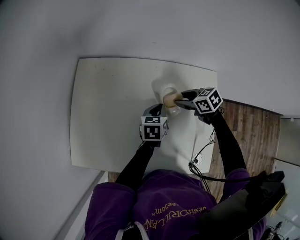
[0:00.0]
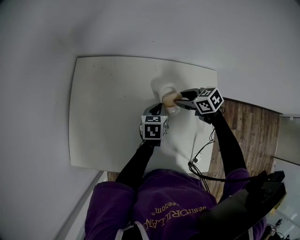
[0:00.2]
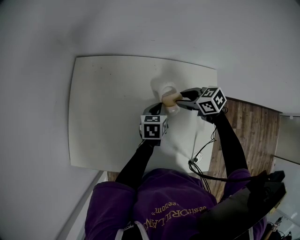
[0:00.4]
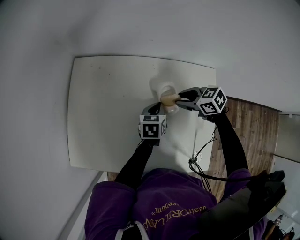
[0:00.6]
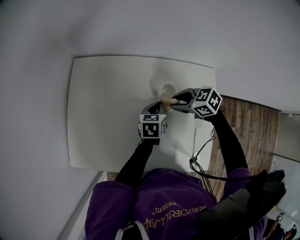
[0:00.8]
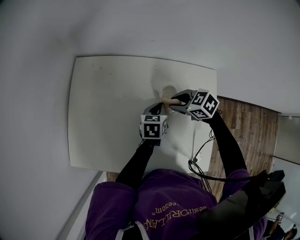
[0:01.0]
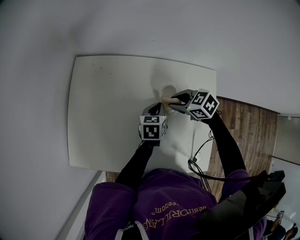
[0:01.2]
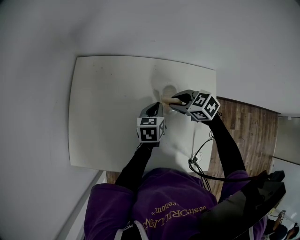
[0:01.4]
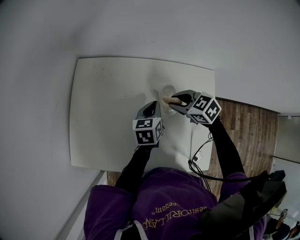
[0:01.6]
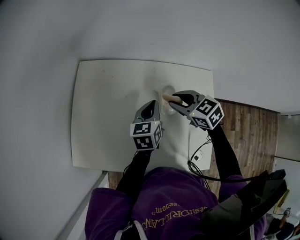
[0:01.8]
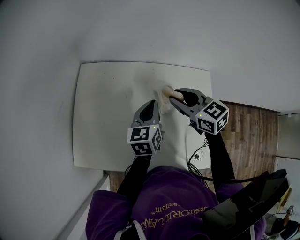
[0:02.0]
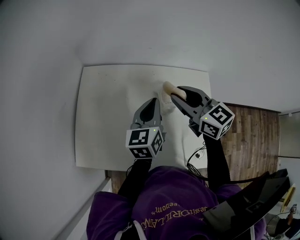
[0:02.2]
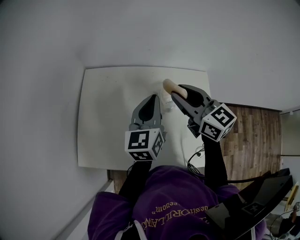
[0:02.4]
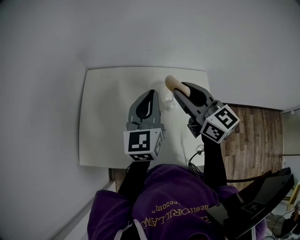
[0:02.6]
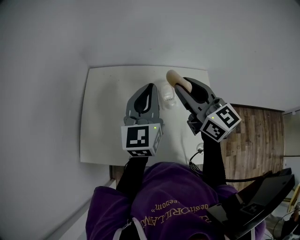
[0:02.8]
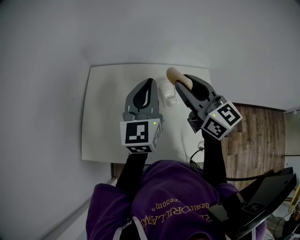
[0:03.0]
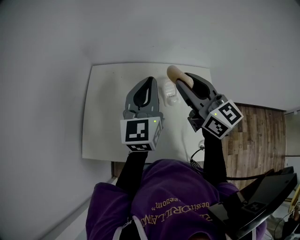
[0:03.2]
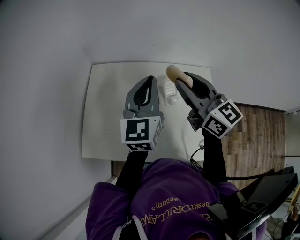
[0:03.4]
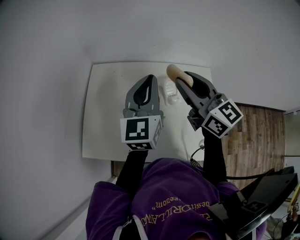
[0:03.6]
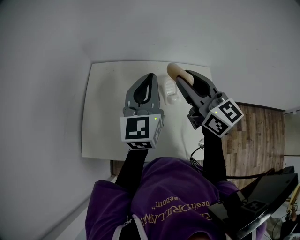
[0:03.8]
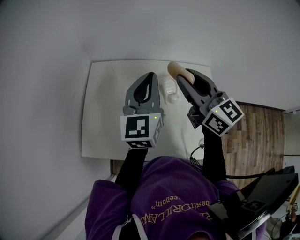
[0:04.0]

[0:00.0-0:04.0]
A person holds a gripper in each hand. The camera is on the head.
0.0 to 1.4 s: The right gripper changes place by approximately 5 cm.
1.4 to 2.6 s: The two grippers go roughly 25 cm upward. The left gripper angles its fingers upward, by approximately 30 degrees. The right gripper angles its fingers upward, by about 40 degrees.
2.6 to 4.0 s: There are only small adjustments of the grippers.

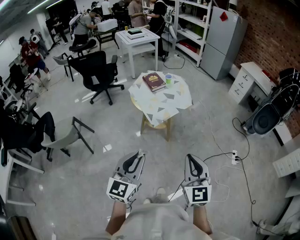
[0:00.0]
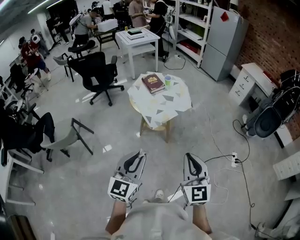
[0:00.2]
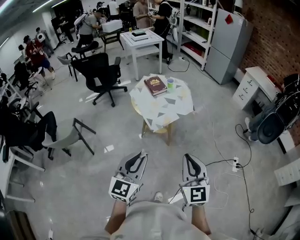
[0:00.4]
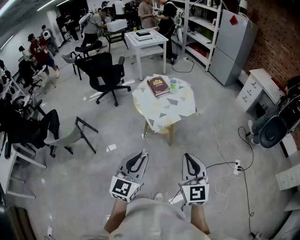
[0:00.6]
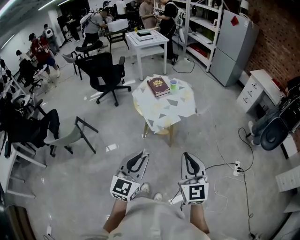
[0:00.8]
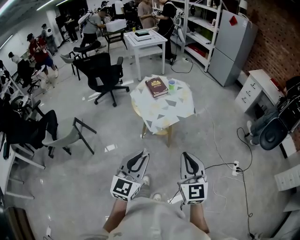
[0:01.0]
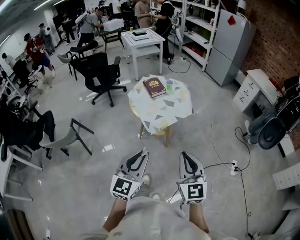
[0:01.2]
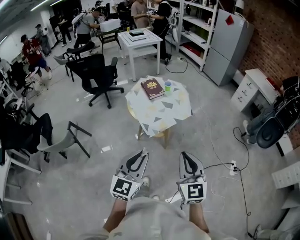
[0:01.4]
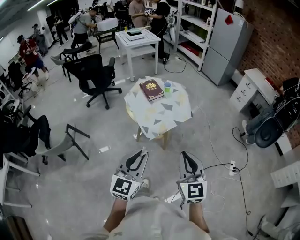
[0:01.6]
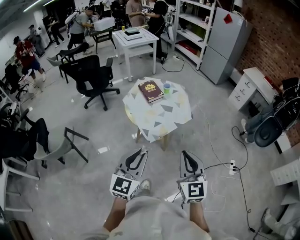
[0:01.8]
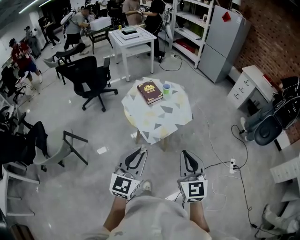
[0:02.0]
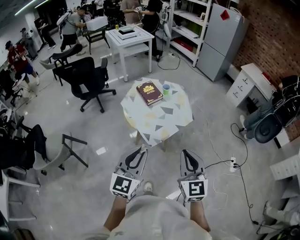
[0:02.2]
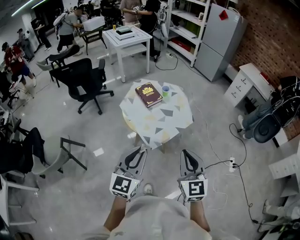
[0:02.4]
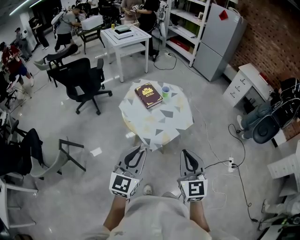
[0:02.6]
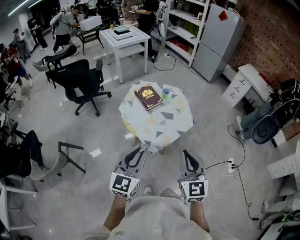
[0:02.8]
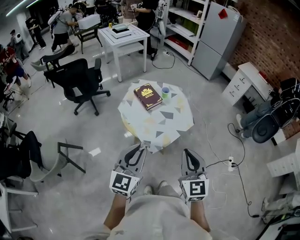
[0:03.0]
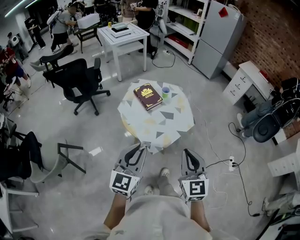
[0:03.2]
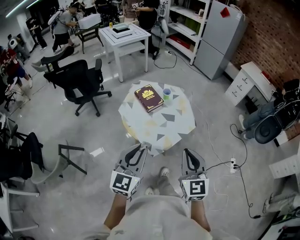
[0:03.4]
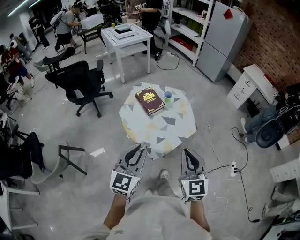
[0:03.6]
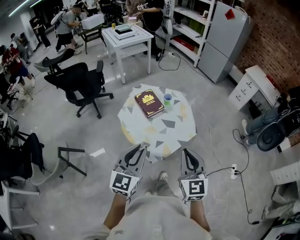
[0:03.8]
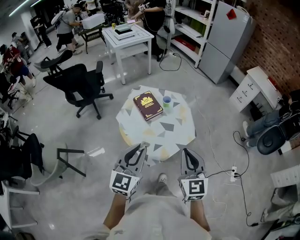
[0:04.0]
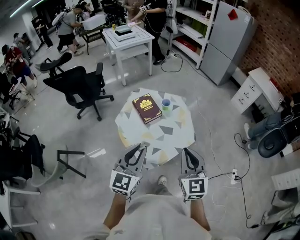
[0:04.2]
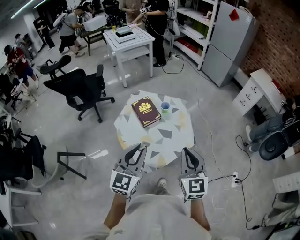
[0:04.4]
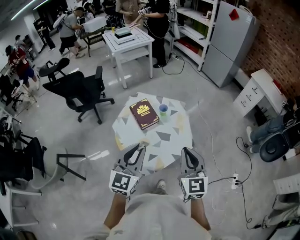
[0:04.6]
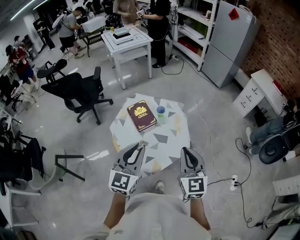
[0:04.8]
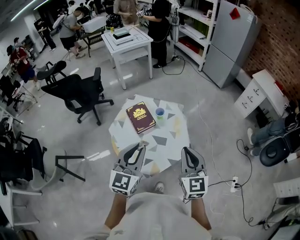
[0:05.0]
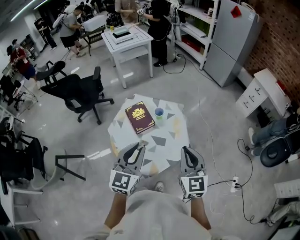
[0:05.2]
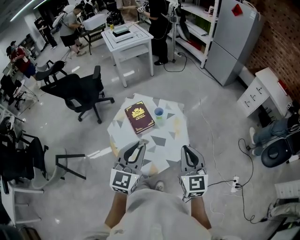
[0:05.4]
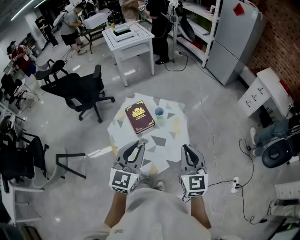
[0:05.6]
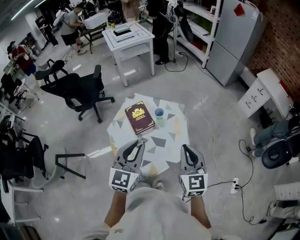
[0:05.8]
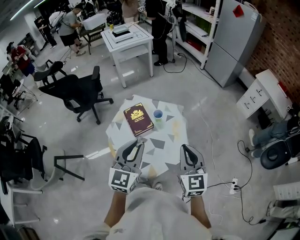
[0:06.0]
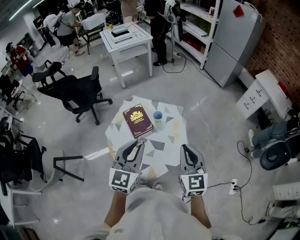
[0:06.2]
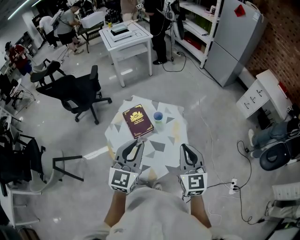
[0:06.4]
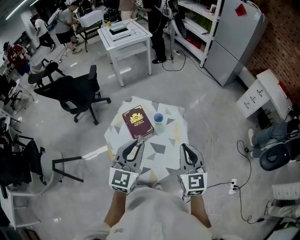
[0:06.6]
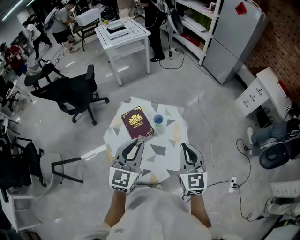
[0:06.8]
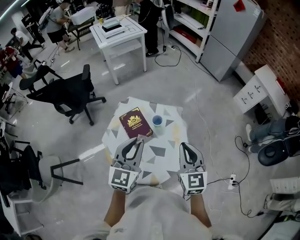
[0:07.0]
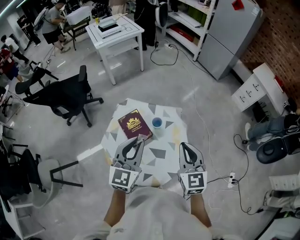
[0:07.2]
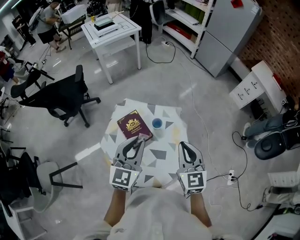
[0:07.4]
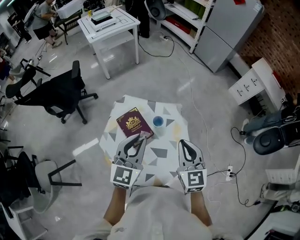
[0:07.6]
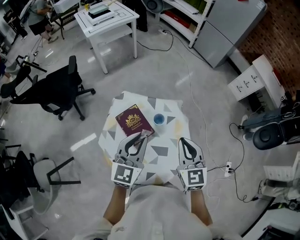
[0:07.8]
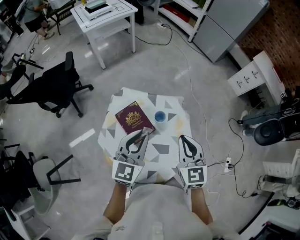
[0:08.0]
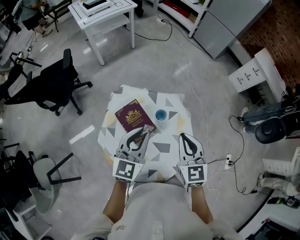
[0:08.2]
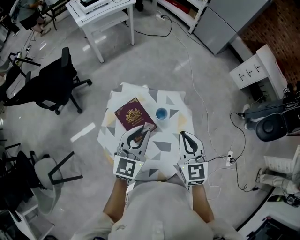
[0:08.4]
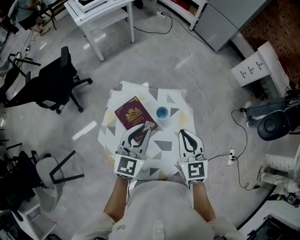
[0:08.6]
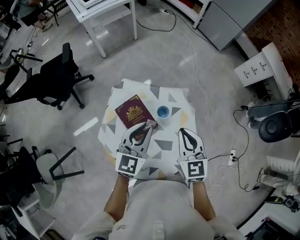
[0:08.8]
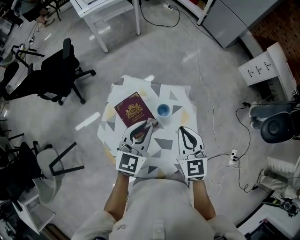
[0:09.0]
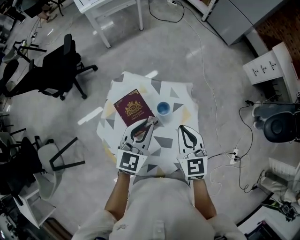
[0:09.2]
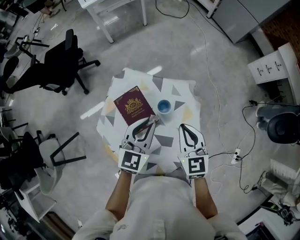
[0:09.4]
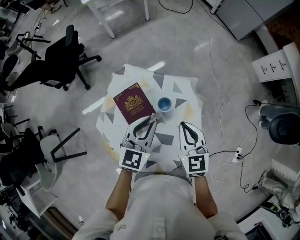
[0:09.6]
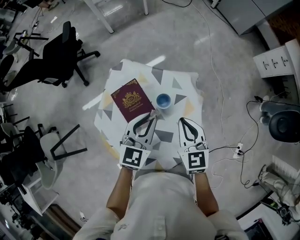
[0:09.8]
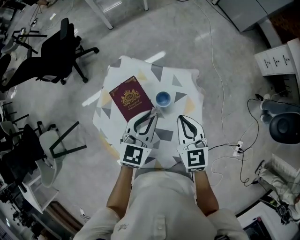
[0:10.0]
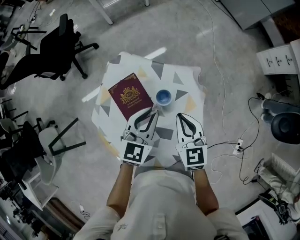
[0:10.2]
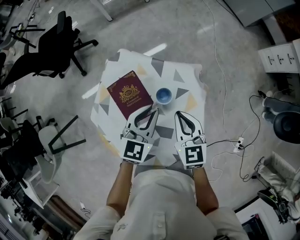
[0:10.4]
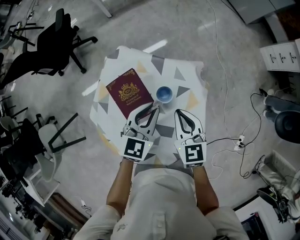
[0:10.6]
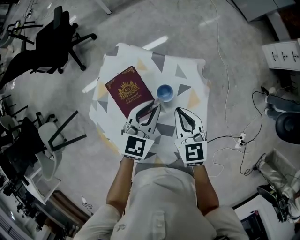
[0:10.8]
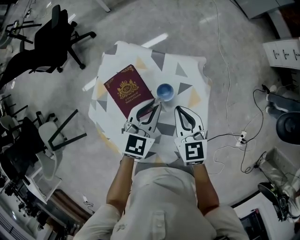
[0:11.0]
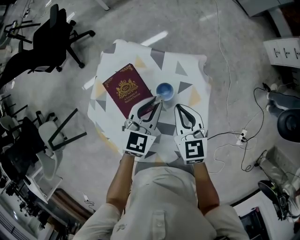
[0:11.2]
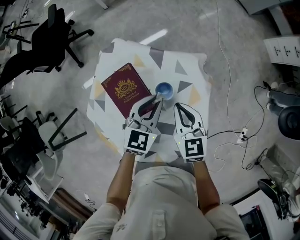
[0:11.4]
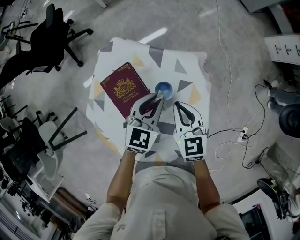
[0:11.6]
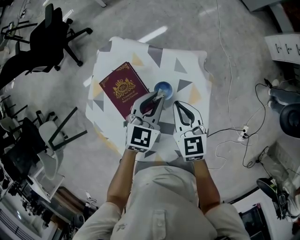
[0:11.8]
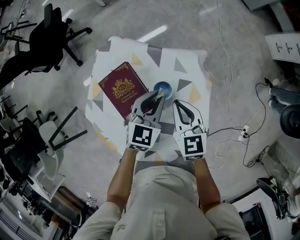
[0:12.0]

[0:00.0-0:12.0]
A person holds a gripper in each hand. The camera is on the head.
0.0 to 1.6 s: The grippers both shift forward by some 15 cm.
1.6 to 3.0 s: Both grippers travel together forward and to the left, some 15 cm.
3.0 to 4.4 s: Both grippers travel together forward, some 15 cm.
4.4 to 6.0 s: The two grippers go about 15 cm forward and to the right.
6.0 to 7.6 s: The left gripper moves forward, about 15 cm, while the right gripper shifts some 15 cm forward and to the left.
7.6 to 9.0 s: The two grippers go roughly 10 cm downward and forward.
9.0 to 10.4 s: The grippers both shift downward by about 10 cm.
10.4 to 12.0 s: Both grippers travel together downward, some 5 cm.

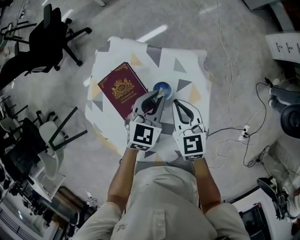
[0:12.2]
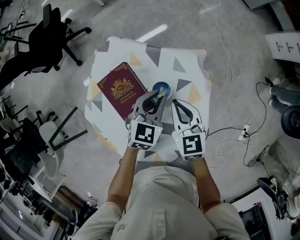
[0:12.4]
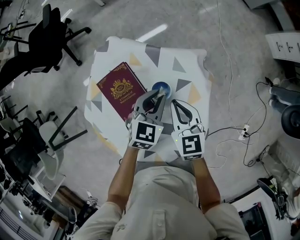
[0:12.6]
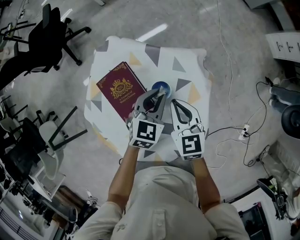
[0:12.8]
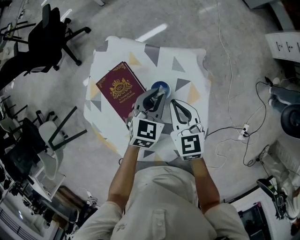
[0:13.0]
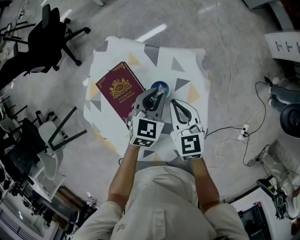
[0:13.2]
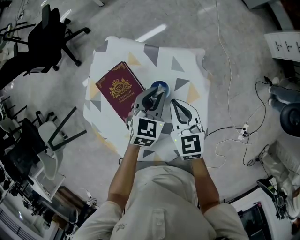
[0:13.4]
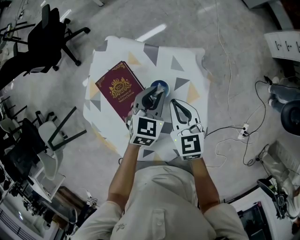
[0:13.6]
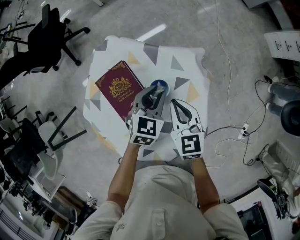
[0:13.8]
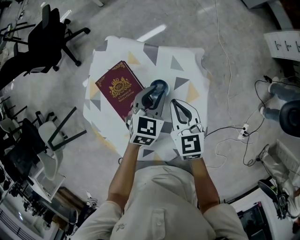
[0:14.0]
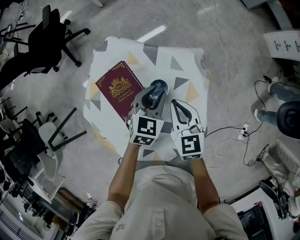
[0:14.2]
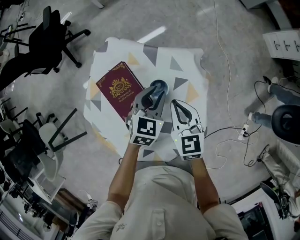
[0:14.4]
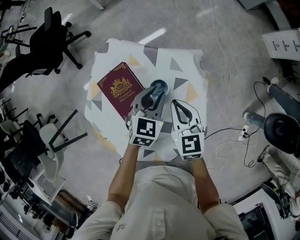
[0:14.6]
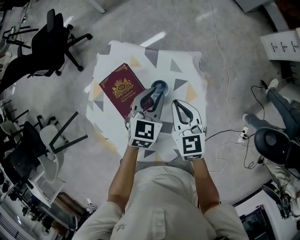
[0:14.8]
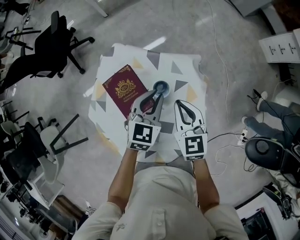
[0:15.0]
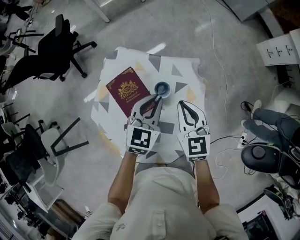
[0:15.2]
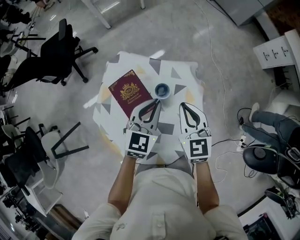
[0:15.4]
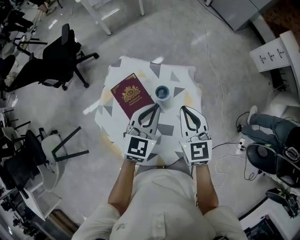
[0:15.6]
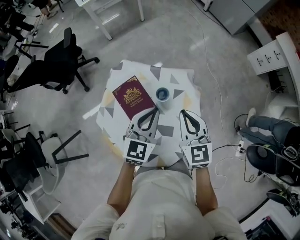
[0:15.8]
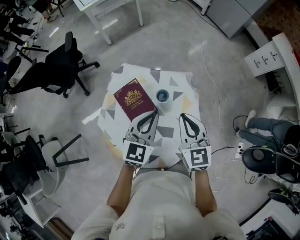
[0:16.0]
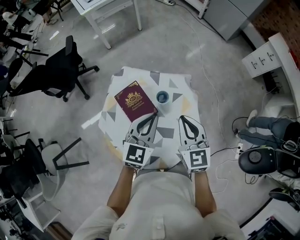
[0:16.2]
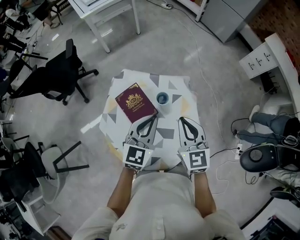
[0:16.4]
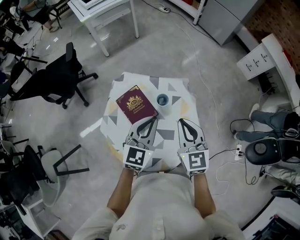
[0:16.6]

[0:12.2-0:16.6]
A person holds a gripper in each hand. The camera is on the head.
12.2 to 13.6 s: The grippers move only a little.
13.6 to 15.2 s: Both grippers travel together upward, some 10 cm.
15.2 to 16.6 s: Both grippers travel together upward and backward, about 15 cm.

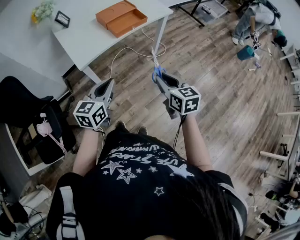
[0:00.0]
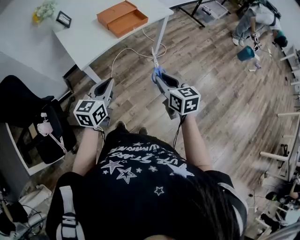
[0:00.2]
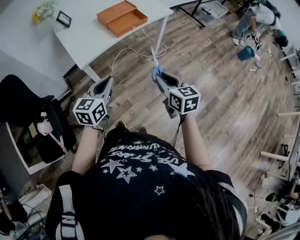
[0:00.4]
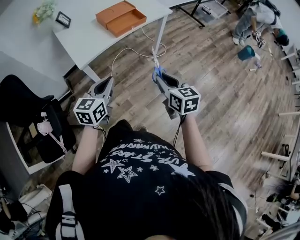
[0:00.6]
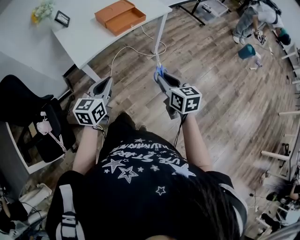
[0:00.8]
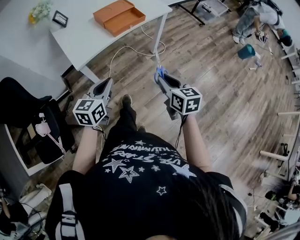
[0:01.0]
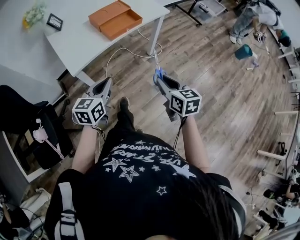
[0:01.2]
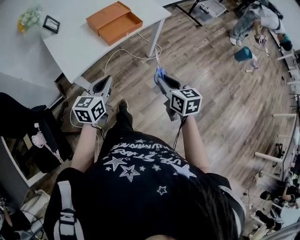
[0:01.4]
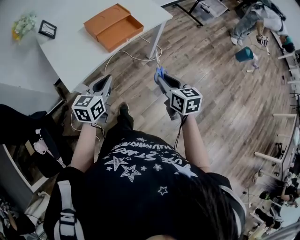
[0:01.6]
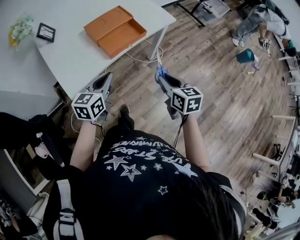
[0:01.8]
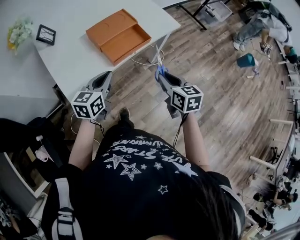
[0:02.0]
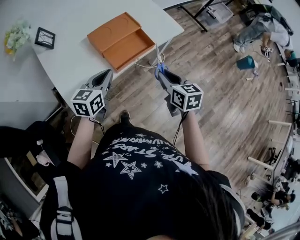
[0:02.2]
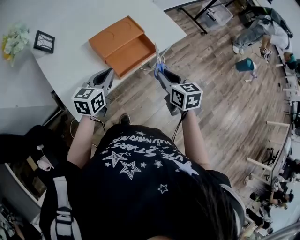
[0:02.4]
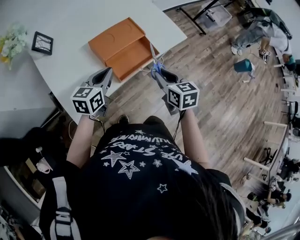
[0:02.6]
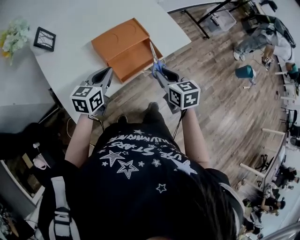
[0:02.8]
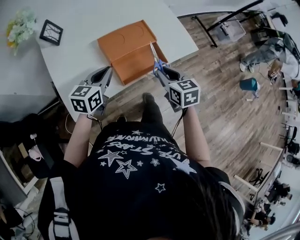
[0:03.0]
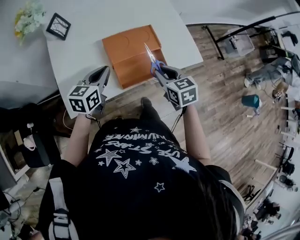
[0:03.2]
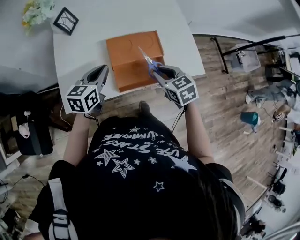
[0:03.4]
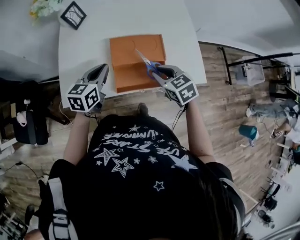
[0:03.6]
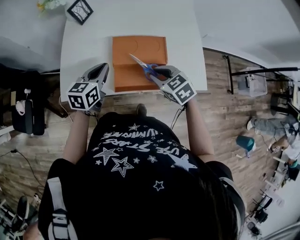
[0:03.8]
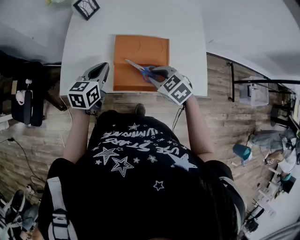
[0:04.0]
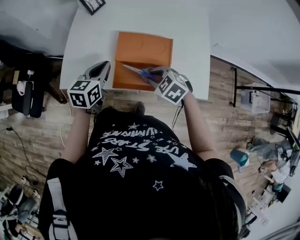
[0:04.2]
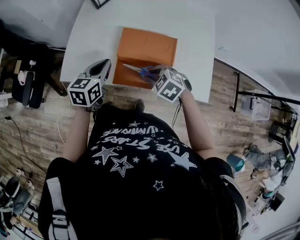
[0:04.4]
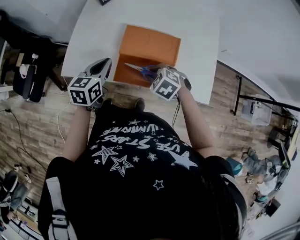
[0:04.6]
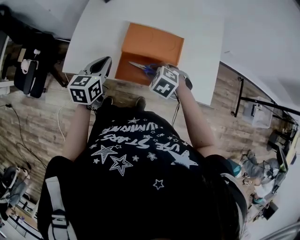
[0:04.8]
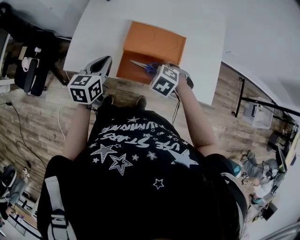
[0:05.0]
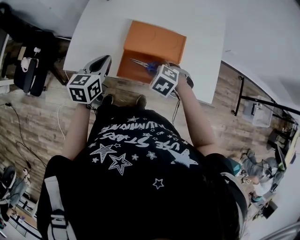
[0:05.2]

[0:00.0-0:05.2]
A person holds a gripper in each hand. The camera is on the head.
0.0 to 1.8 s: The two grippers go about 25 cm forward.
1.8 to 3.4 s: The left gripper moves some 30 cm, and rotates roughly 20 degrees. The right gripper changes place by approximately 35 cm, and changes its angle by about 50 degrees.
3.4 to 5.2 s: The left gripper shifts by some 5 cm, and changes its angle by roughly 30 degrees; the right gripper heads downward, covering some 10 cm, and twists roughly 50 degrees counterclockwise, seen from behind.
